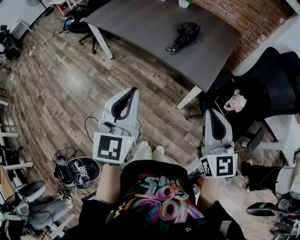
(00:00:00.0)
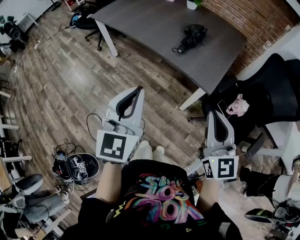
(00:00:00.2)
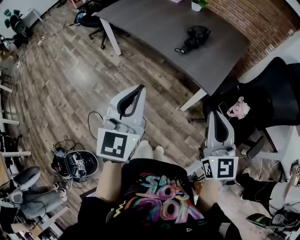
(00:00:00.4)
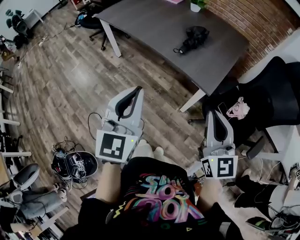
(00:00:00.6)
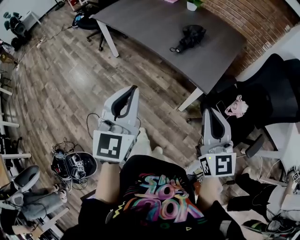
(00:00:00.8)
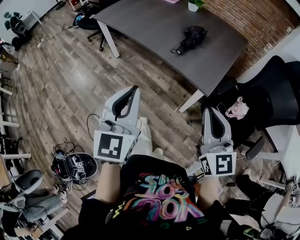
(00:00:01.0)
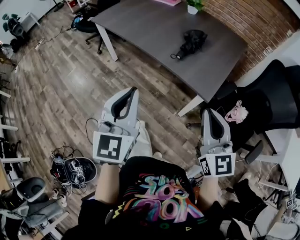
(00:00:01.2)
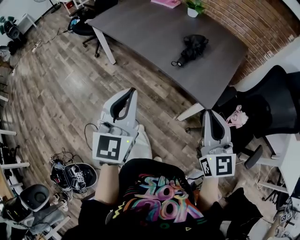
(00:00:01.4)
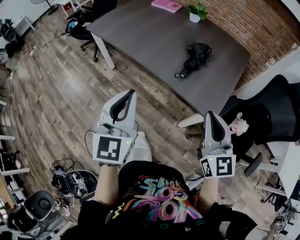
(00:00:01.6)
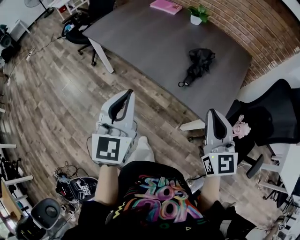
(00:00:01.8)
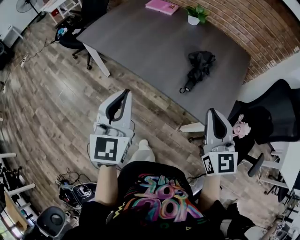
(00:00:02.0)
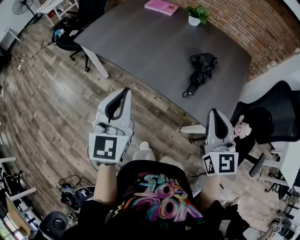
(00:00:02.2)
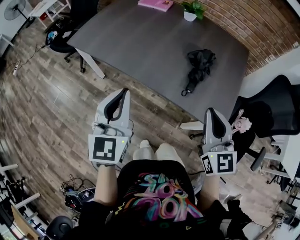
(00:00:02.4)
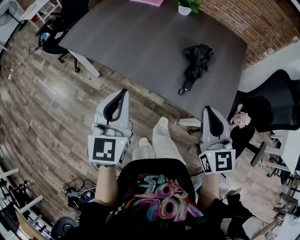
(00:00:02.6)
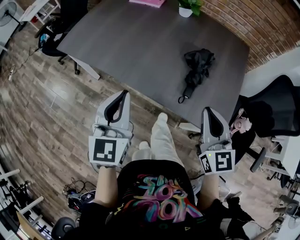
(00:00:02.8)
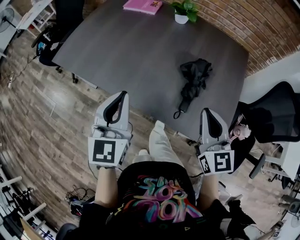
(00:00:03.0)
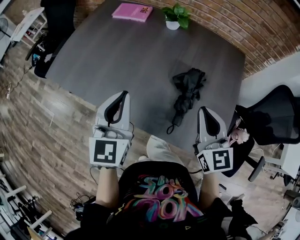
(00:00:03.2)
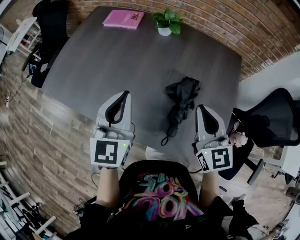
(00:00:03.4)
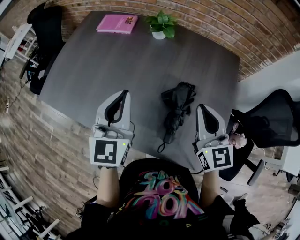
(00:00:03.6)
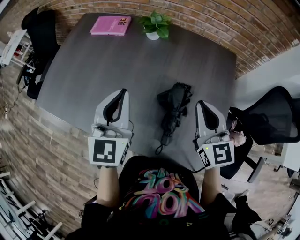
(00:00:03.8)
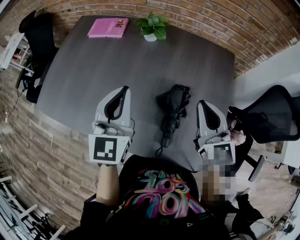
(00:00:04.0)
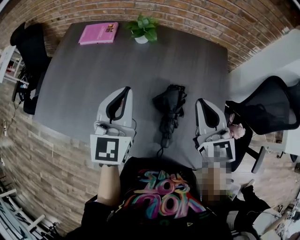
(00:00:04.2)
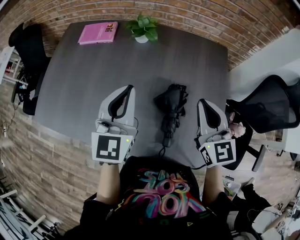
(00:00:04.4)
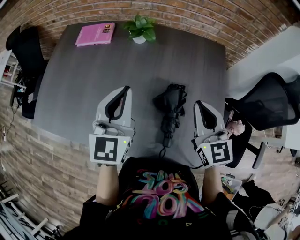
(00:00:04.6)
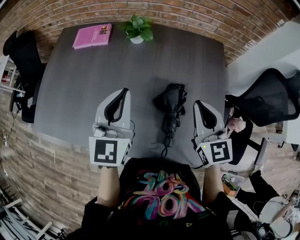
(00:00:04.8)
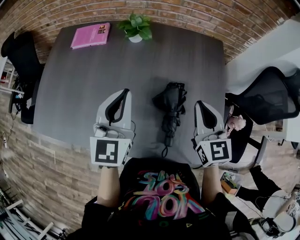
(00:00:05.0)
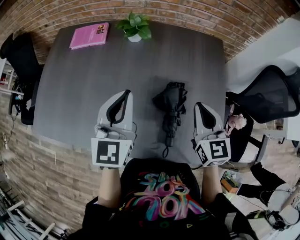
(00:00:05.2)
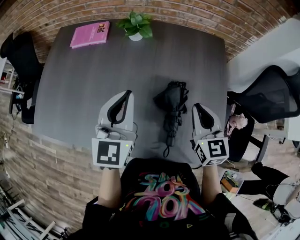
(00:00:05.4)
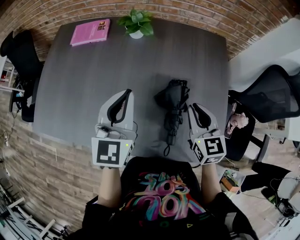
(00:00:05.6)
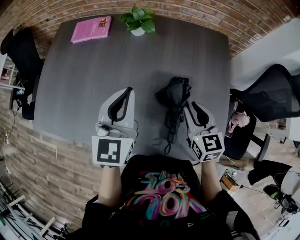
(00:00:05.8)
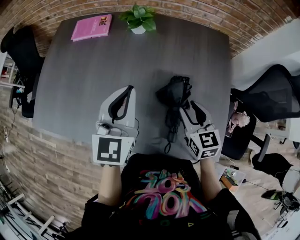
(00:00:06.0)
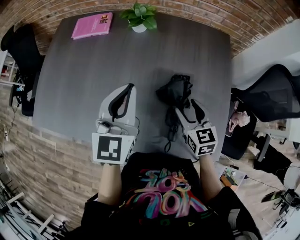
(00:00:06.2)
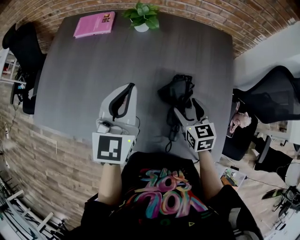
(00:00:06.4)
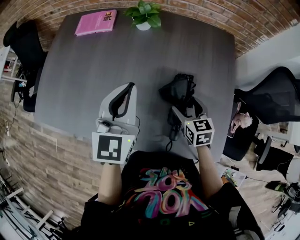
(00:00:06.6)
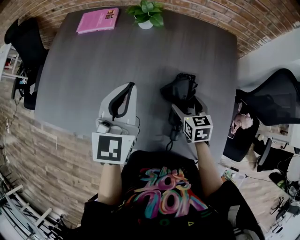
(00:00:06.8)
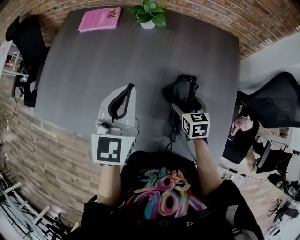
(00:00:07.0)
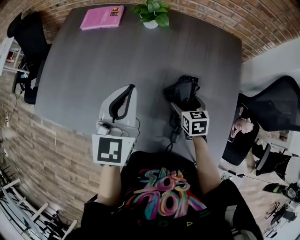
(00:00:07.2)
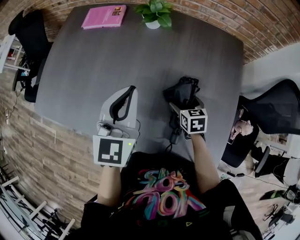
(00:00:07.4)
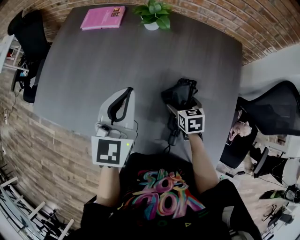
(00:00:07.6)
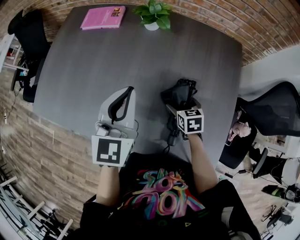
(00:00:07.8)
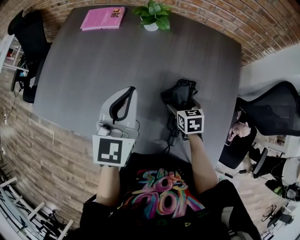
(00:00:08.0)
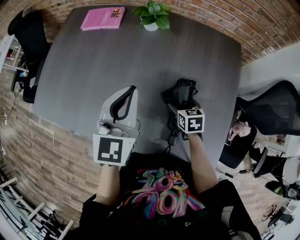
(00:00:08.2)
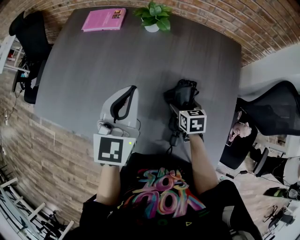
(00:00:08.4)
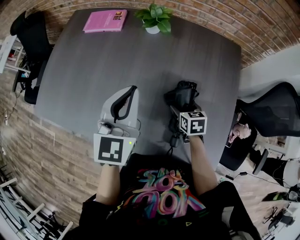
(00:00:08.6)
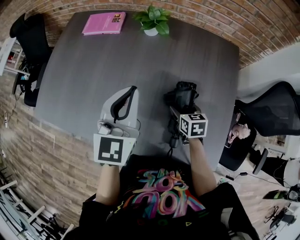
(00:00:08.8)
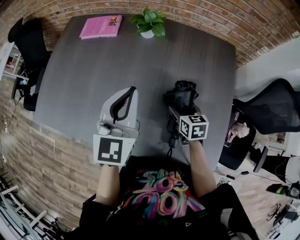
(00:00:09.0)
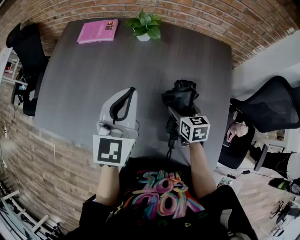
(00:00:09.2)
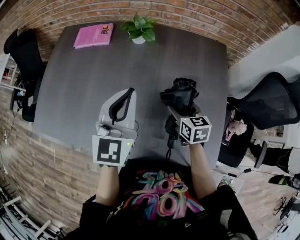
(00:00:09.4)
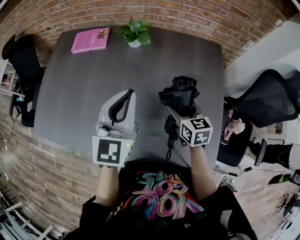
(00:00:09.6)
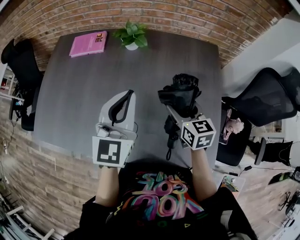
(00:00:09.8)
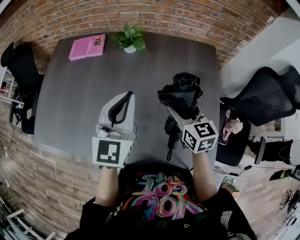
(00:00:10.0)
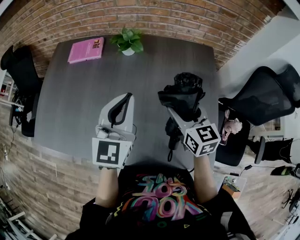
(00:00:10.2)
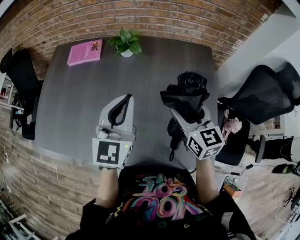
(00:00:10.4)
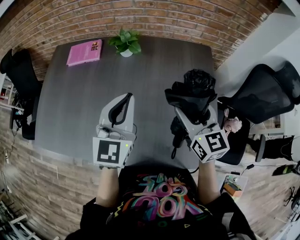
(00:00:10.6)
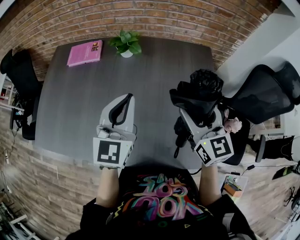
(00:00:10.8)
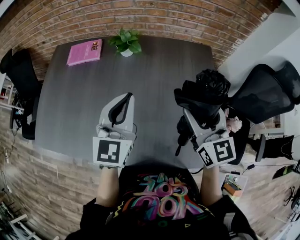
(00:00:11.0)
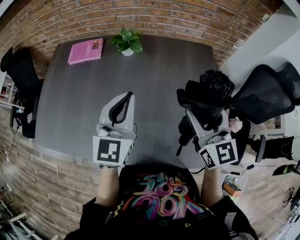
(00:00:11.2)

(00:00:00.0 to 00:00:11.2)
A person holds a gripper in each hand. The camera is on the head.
00:00:00.0 - 00:00:01.6: Both grippers travel together forward, some 15 cm.
00:00:01.6 - 00:00:03.2: The two grippers go some 30 cm forward.
00:00:03.2 - 00:00:04.8: The grippers both shift forward and to the right by roughly 15 cm.
00:00:04.8 - 00:00:06.4: The right gripper heads downward, covering roughly 15 cm, swivels roughly 20 degrees, and opens.
00:00:06.4 - 00:00:08.0: The right gripper heads downward, covering some 10 cm.
00:00:08.0 - 00:00:09.6: The right gripper is displaced upward by about 15 cm. Meanwhile the left gripper changes place by some 5 cm.
00:00:09.6 - 00:00:11.2: The right gripper shifts about 20 cm upward, and turns by approximately 30 degrees.

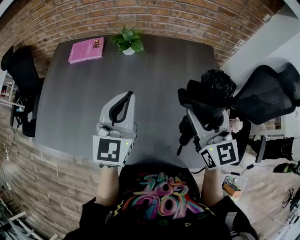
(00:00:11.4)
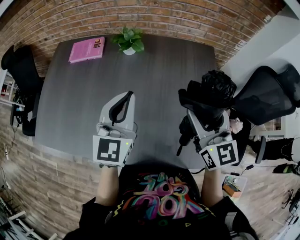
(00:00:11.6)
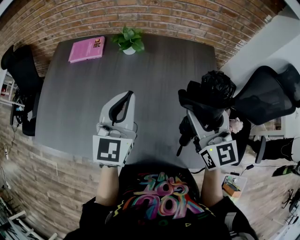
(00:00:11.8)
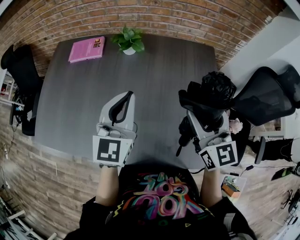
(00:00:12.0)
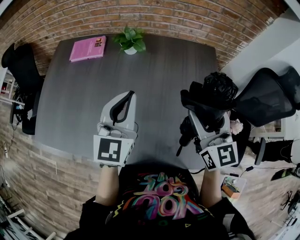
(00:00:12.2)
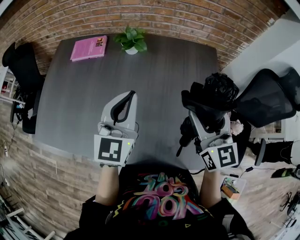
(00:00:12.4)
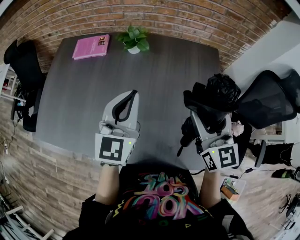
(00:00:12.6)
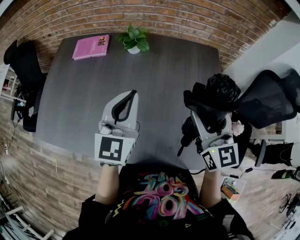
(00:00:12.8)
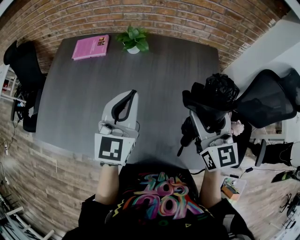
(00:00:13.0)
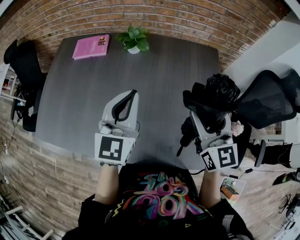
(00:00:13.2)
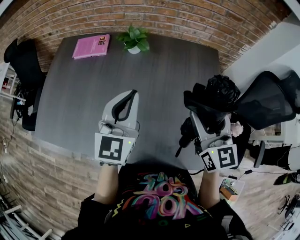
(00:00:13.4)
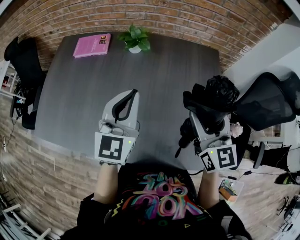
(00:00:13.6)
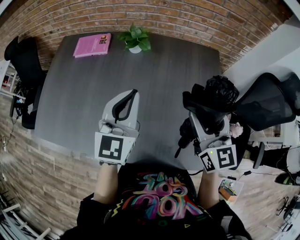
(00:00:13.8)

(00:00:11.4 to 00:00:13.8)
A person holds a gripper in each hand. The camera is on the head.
00:00:11.4 - 00:00:13.8: Neither gripper changes place.

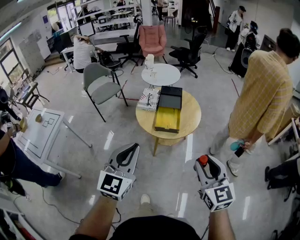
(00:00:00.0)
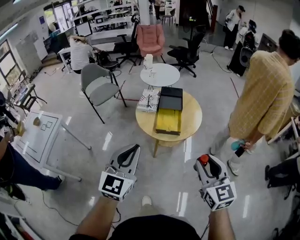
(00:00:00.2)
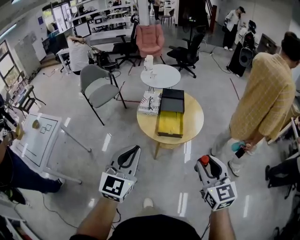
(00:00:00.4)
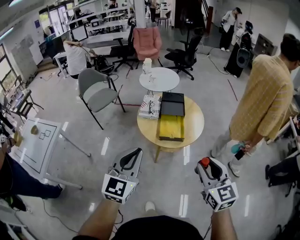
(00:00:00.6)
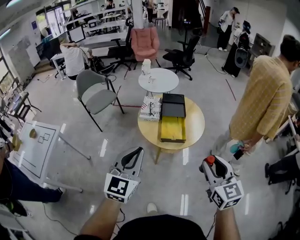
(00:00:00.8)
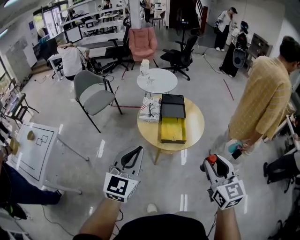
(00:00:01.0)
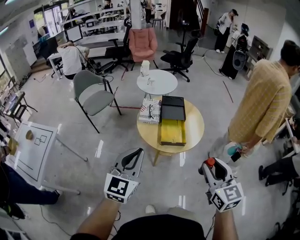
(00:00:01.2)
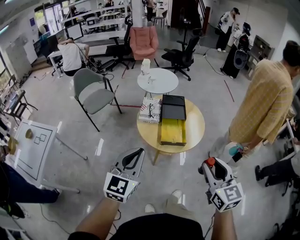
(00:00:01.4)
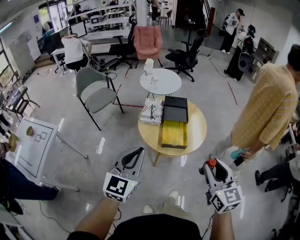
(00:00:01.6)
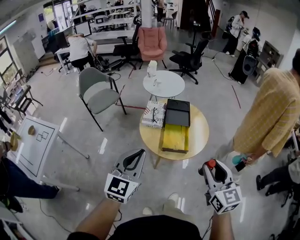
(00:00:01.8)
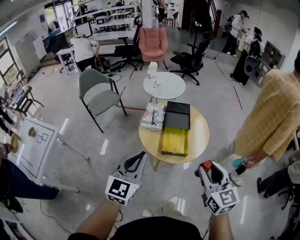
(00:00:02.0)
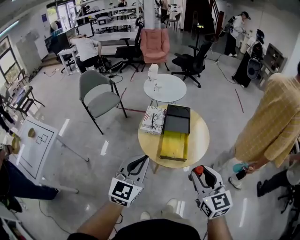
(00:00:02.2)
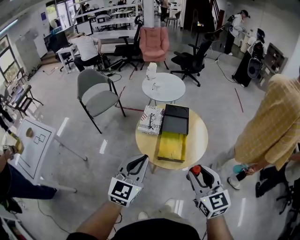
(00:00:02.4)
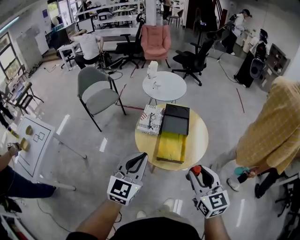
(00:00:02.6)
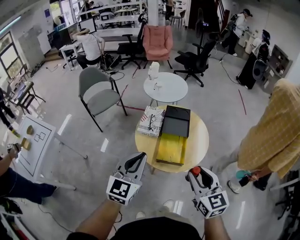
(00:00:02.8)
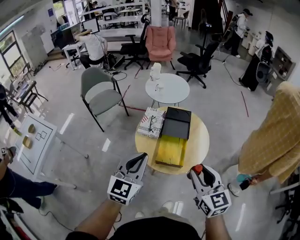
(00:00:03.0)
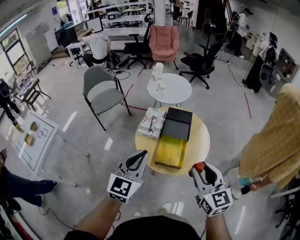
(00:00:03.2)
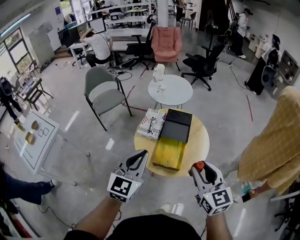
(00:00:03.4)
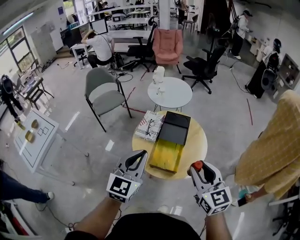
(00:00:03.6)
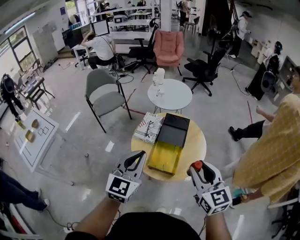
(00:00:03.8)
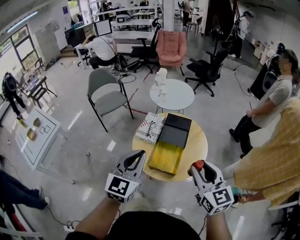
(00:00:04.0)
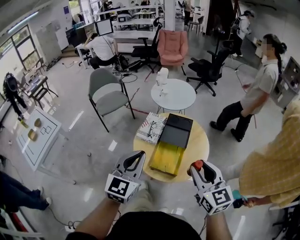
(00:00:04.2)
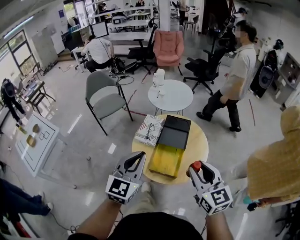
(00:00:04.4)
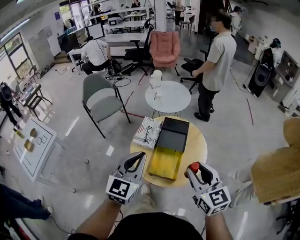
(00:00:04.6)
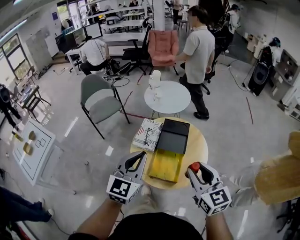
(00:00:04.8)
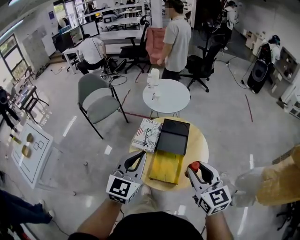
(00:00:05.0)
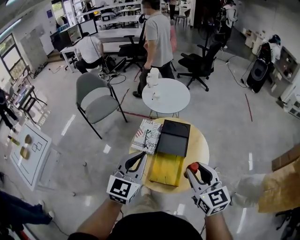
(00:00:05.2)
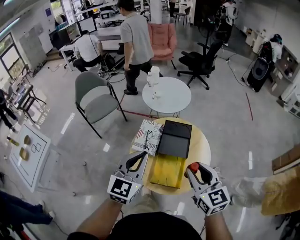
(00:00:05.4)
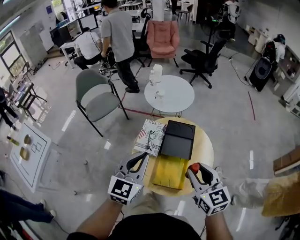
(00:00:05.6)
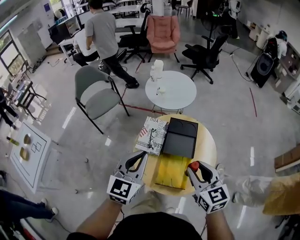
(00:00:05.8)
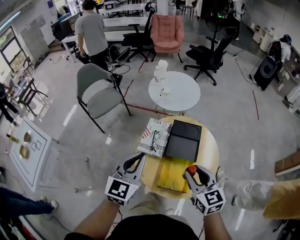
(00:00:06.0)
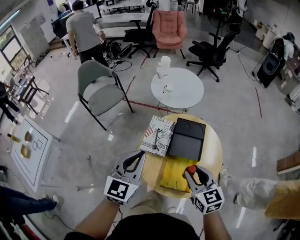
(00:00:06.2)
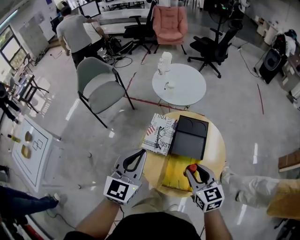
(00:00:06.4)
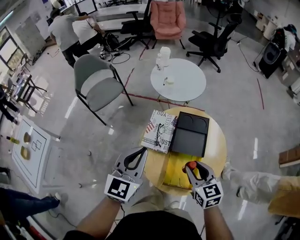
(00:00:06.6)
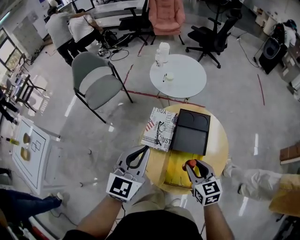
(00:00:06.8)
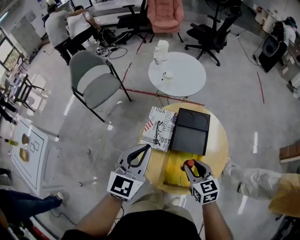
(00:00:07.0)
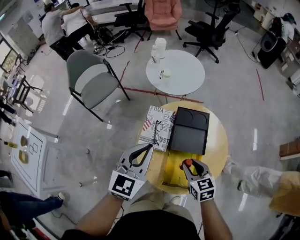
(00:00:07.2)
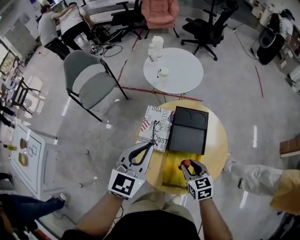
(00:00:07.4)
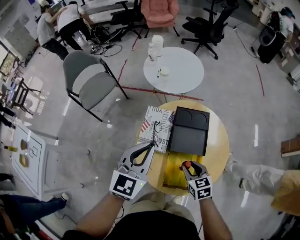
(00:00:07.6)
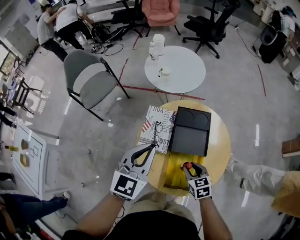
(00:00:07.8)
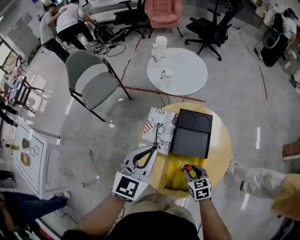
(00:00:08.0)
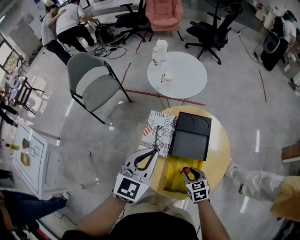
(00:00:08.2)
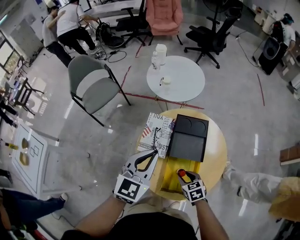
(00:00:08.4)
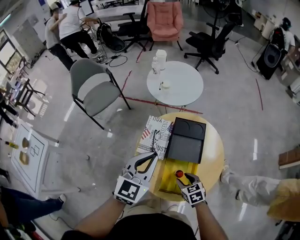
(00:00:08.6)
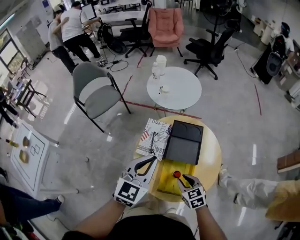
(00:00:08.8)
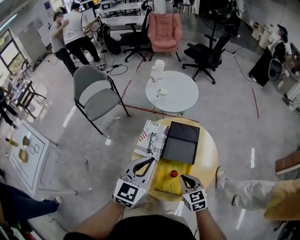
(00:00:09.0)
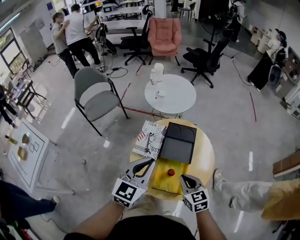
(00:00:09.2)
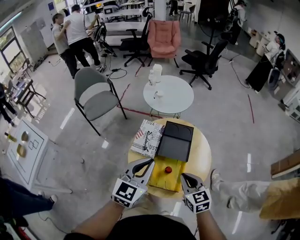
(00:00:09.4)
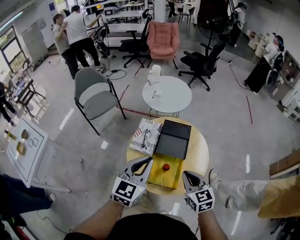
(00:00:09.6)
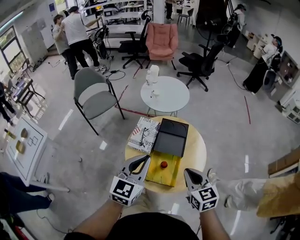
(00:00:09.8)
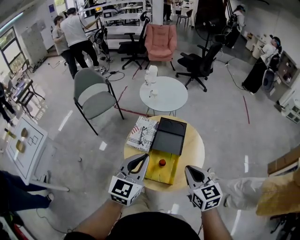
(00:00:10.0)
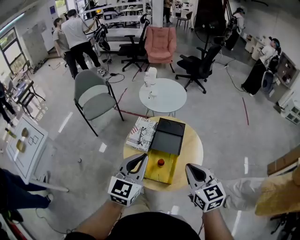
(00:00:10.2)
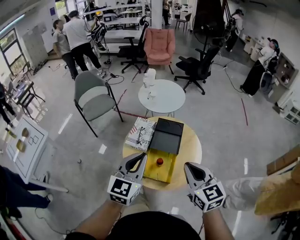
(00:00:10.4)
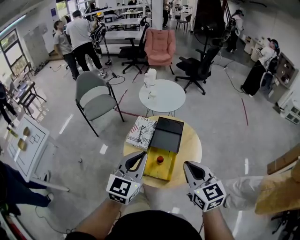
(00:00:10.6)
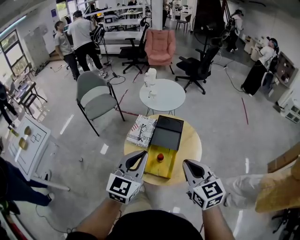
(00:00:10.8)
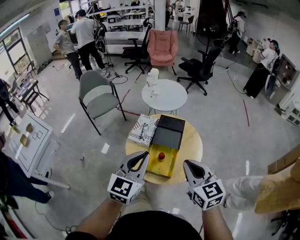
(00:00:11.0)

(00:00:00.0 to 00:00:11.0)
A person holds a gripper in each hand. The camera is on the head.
00:00:00.0 - 00:00:01.6: The grippers both shift forward and to the left by roughly 15 cm.
00:00:01.6 - 00:00:03.2: The left gripper moves forward and to the right, roughly 15 cm. The right gripper moves forward, approximately 15 cm.
00:00:03.2 - 00:00:04.8: The grippers both shift forward by approximately 10 cm.
00:00:04.8 - 00:00:06.2: The left gripper goes approximately 15 cm forward, to the left and downward, while the right gripper travels forward, downward and to the left by some 20 cm.
00:00:06.2 - 00:00:07.8: The left gripper heads forward and downward, covering about 10 cm. Meanwhile the right gripper goes some 20 cm downward, and rotates about 20 degrees.
00:00:07.8 - 00:00:09.4: The left gripper is displaced backward, upward and to the right by approximately 15 cm. The right gripper travels upward and backward by approximately 20 cm, changes its angle by roughly 20 degrees, and closes up.
00:00:09.4 - 00:00:11.0: The right gripper travels upward and backward by about 20 cm. The left gripper heads backward and upward, covering about 15 cm.
